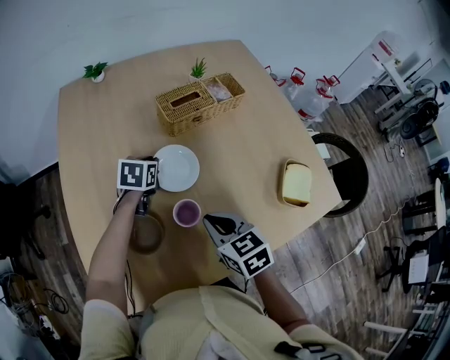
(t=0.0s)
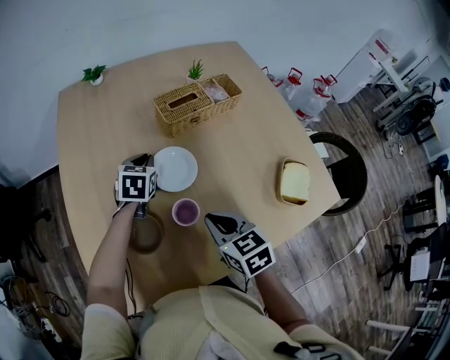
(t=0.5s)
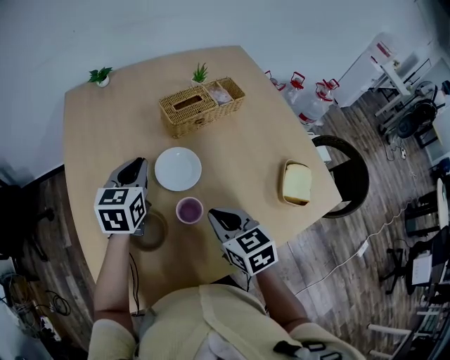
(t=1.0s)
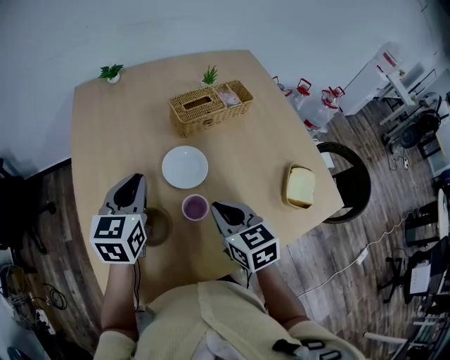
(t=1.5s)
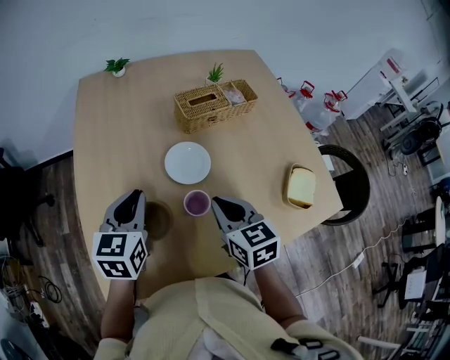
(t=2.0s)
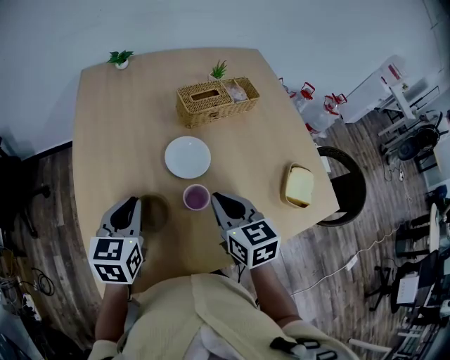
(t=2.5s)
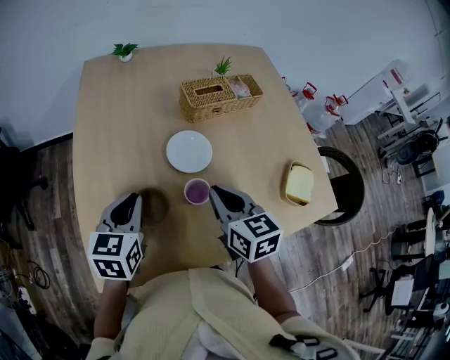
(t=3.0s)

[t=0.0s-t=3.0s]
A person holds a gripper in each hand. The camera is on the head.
t=0.0s to t=1.5s: The left gripper goes about 20 cm upward and backward, and swivels some 30 degrees.
t=1.5s to t=3.0s: The left gripper shifts about 10 cm backward.

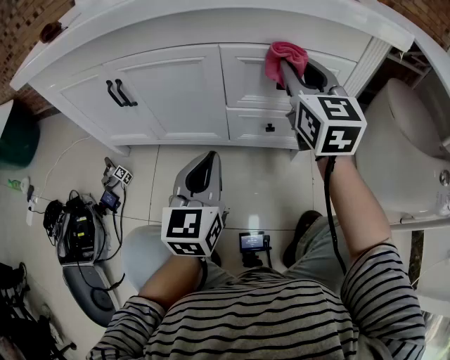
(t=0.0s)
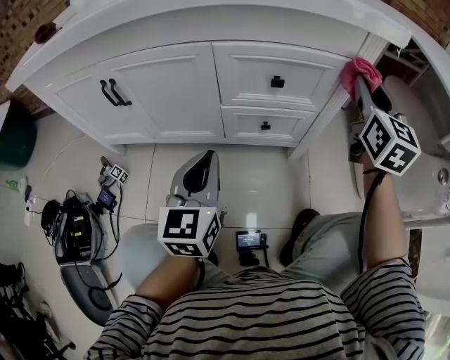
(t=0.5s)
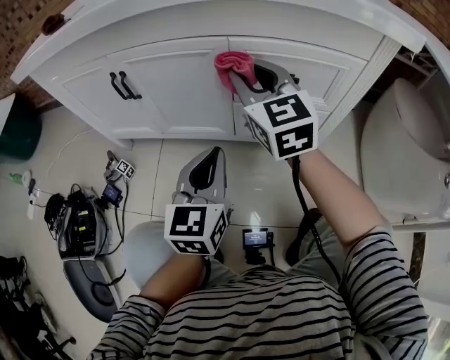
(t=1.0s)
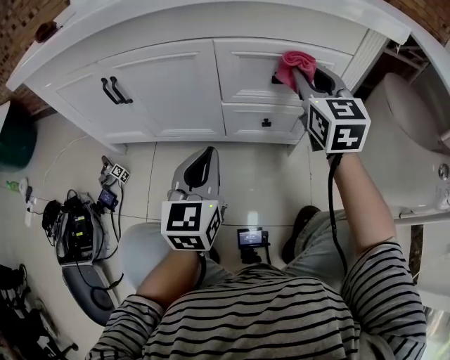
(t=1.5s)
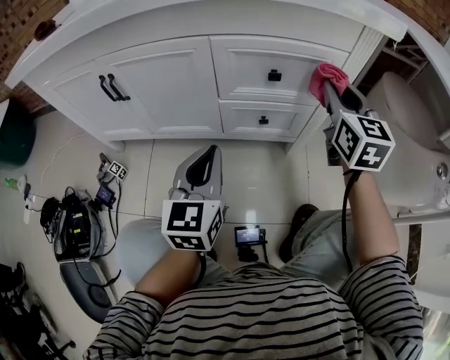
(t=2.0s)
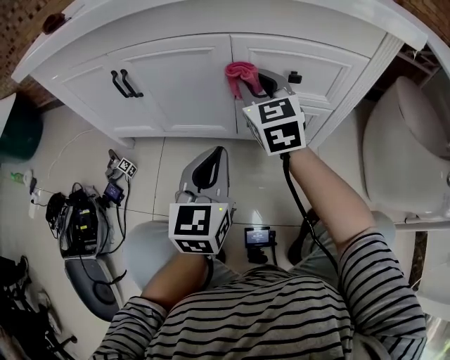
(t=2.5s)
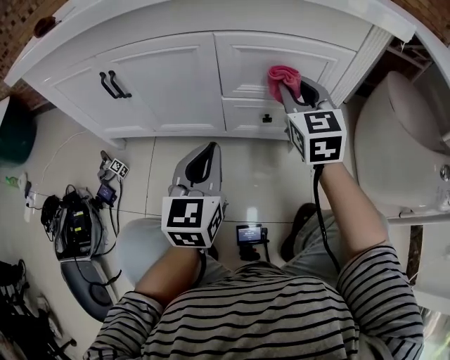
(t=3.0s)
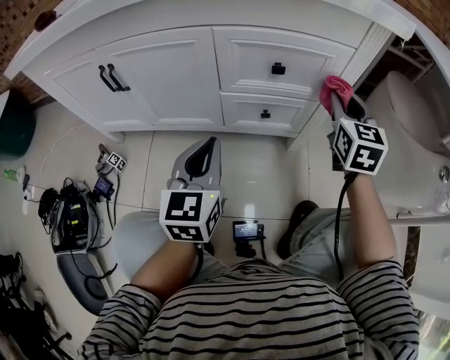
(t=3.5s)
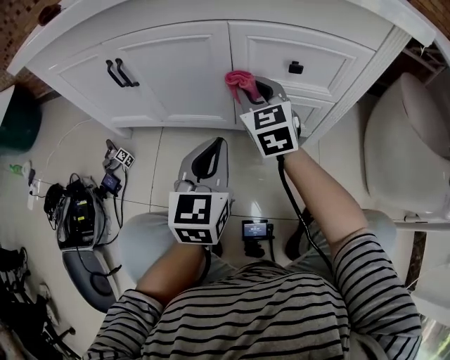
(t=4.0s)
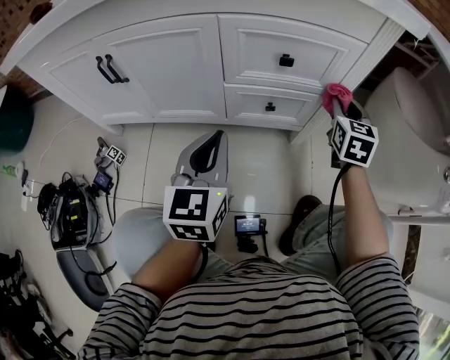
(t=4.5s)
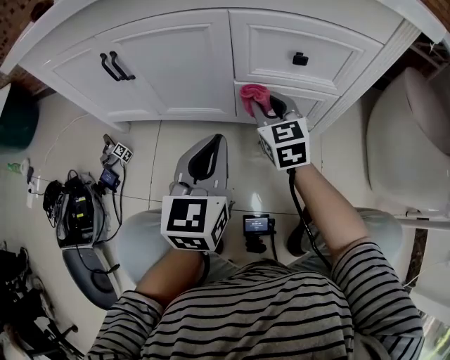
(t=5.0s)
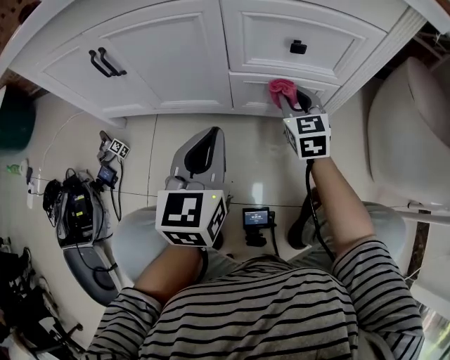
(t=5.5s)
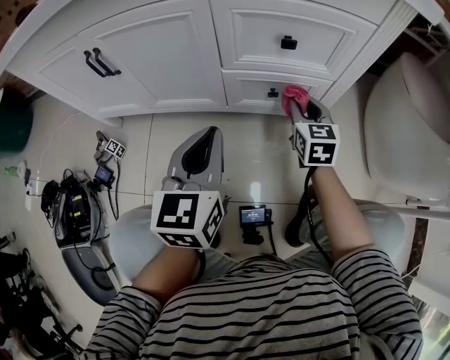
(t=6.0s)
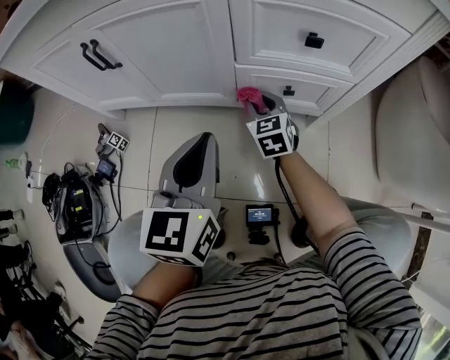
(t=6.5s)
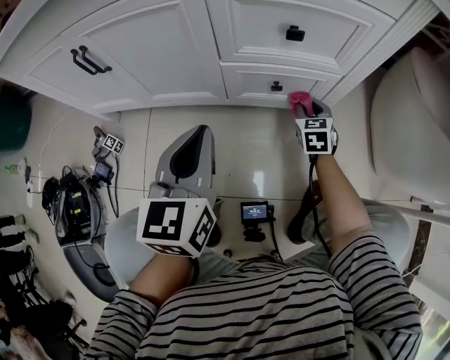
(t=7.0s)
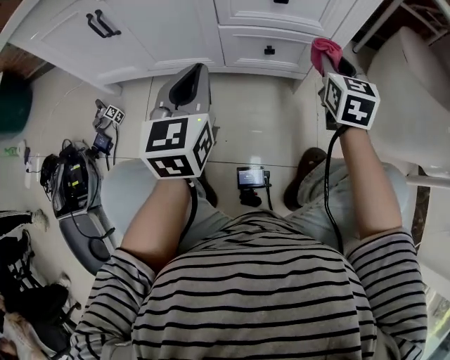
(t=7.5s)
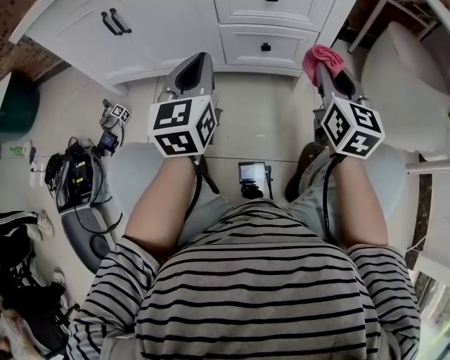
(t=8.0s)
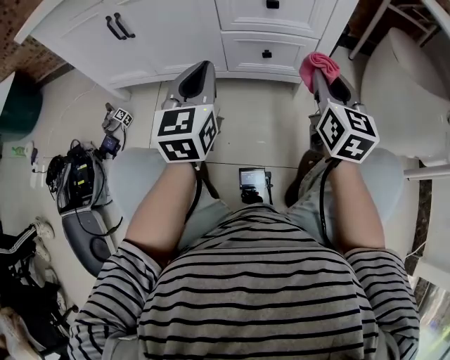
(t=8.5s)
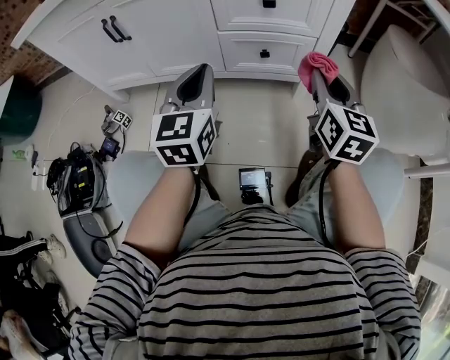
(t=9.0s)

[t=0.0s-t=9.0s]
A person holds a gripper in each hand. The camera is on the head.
t=0.0s to t=2.0s: The right gripper moves left and right over about 30 cm, changing direction 2 times.
t=2.0s to t=4.5s: The right gripper moves left and right over about 25 cm, changing direction 3 times.
t=4.5s to t=7.0s: The right gripper goes left and right, about 25 cm each way, reversing 3 times.
t=7.0s to t=9.0s: The right gripper shifts about 30 cm upward and backward, and rotates about 30 degrees.

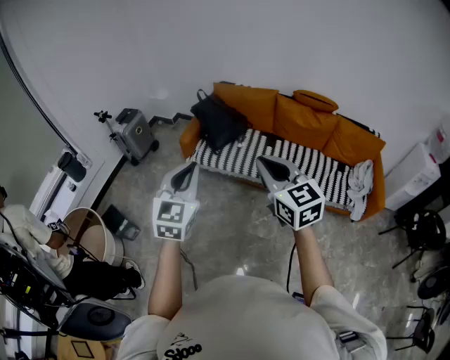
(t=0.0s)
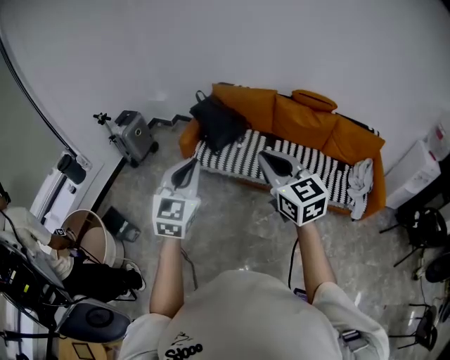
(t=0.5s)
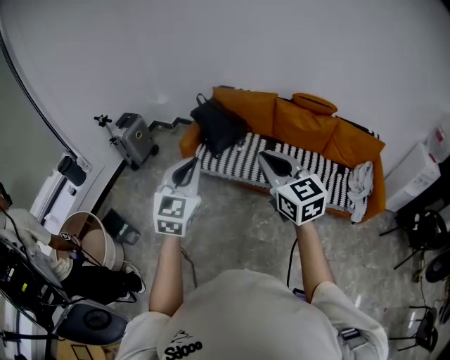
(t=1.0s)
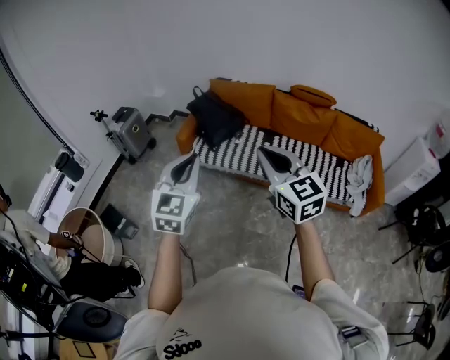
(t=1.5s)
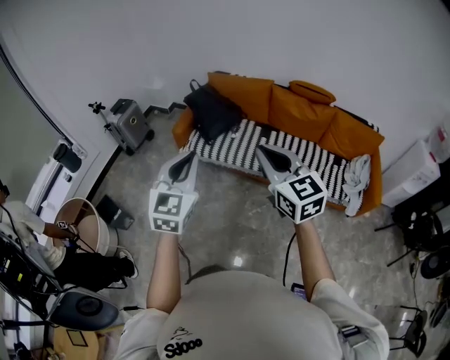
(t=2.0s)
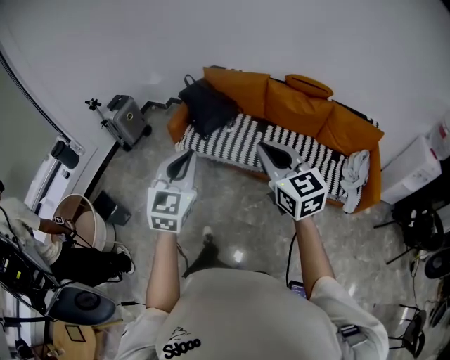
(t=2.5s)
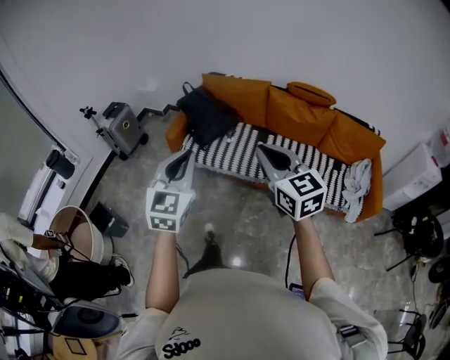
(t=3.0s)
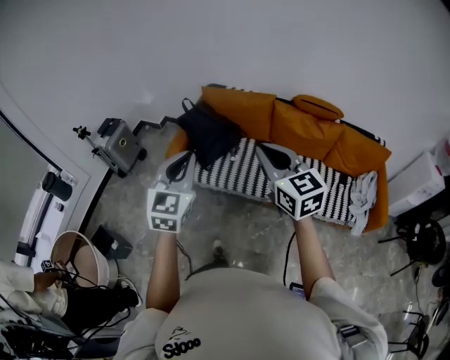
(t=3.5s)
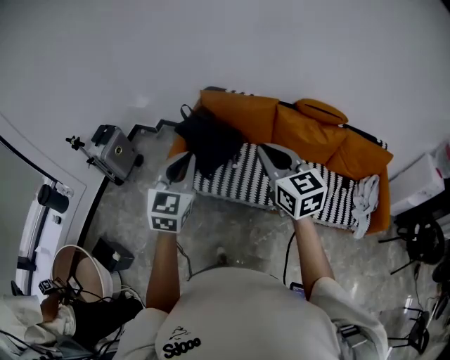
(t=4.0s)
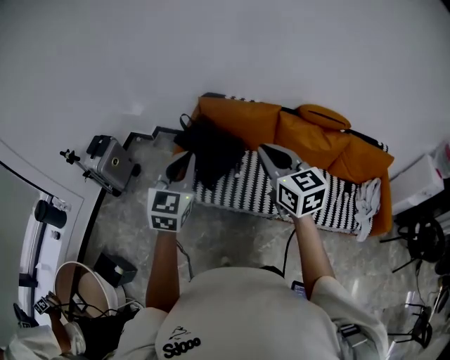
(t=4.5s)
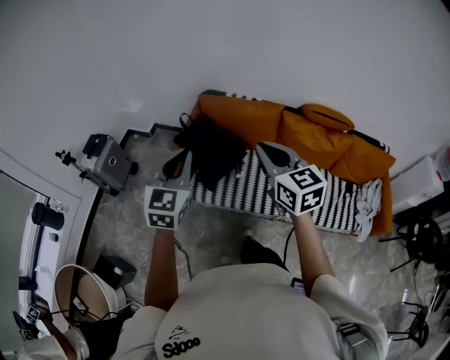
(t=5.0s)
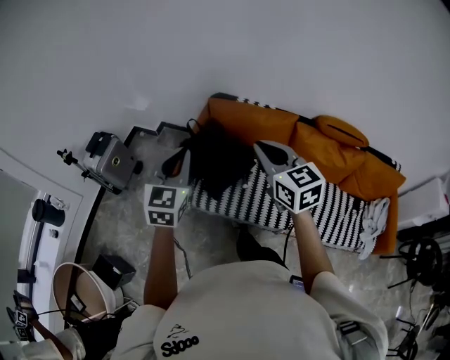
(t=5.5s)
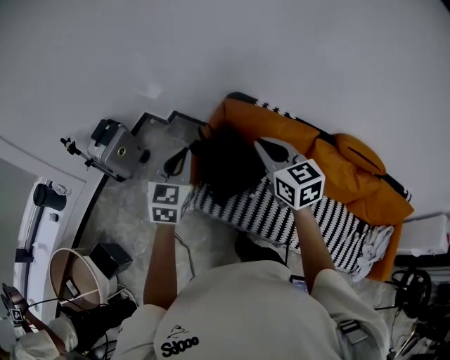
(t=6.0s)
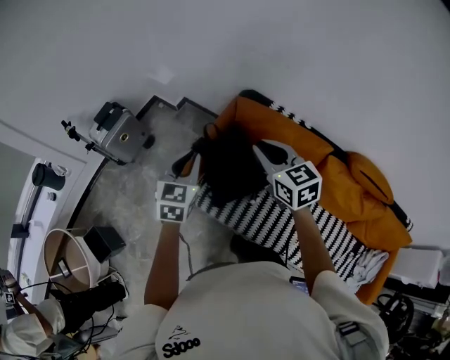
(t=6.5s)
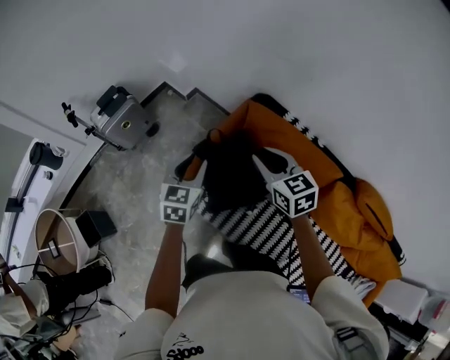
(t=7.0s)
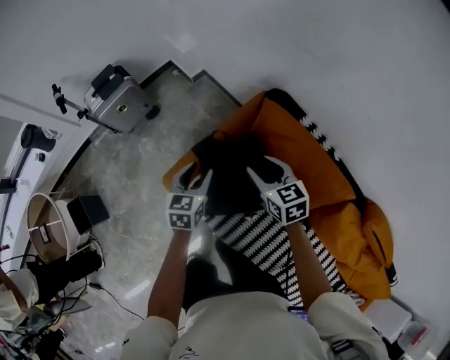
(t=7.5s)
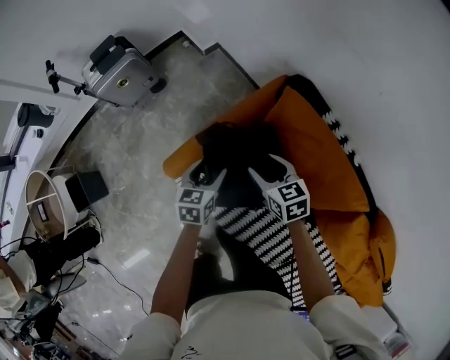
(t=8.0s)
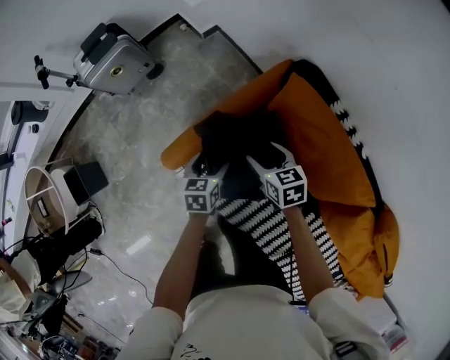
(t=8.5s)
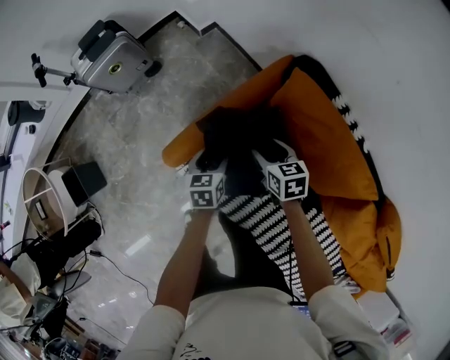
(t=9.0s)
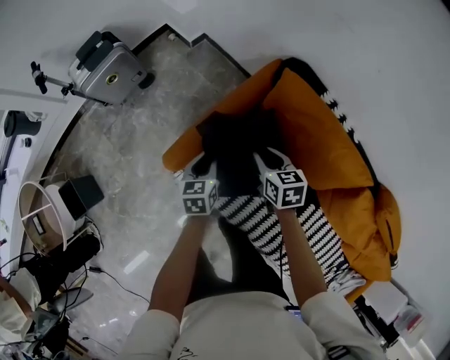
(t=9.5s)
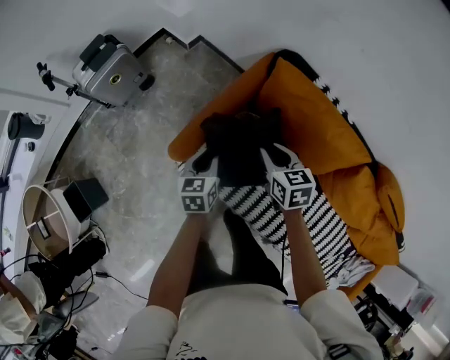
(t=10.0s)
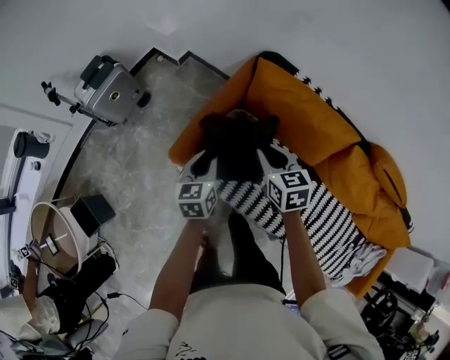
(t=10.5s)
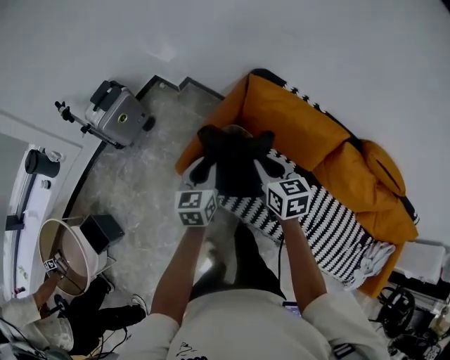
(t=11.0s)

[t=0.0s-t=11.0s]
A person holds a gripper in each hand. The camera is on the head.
t=0.0s to t=2.0s: The two grippers go some 5 cm to the right.
t=2.0s to t=3.5s: The grippers both shift forward by about 25 cm.
t=3.5s to t=5.5s: The grippers both shift forward by about 35 cm.
t=5.5s to t=7.5s: The right gripper changes place by approximately 50 cm, swivels roughly 40 degrees, and opens up. Meanwhile the left gripper heads downward, covering approximately 35 cm, changes its angle by some 40 degrees, and opens its fingers.
t=7.5s to t=9.0s: Both grippers move downward, approximately 20 cm.
t=9.0s to t=11.0s: Both grippers move upward and backward, some 30 cm. The right gripper swivels approximately 30 degrees, and closes up. Meanwhile the left gripper changes its angle by approximately 30 degrees, and closes up.

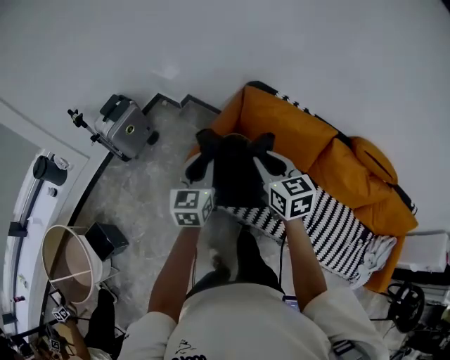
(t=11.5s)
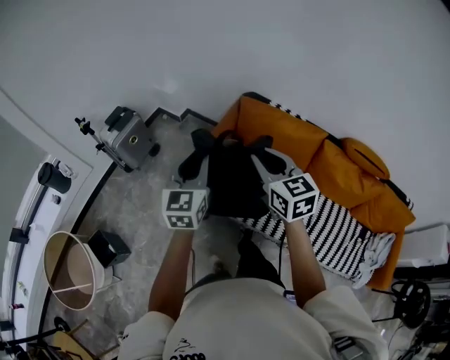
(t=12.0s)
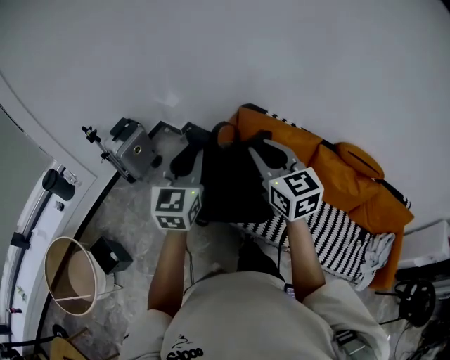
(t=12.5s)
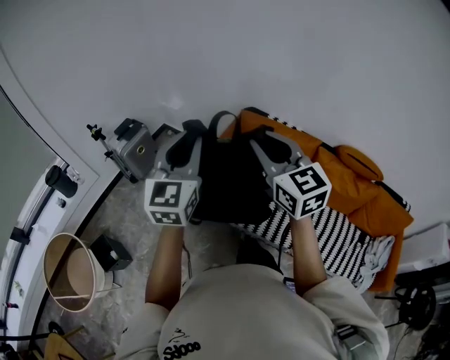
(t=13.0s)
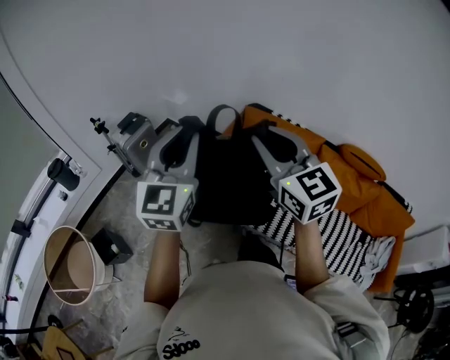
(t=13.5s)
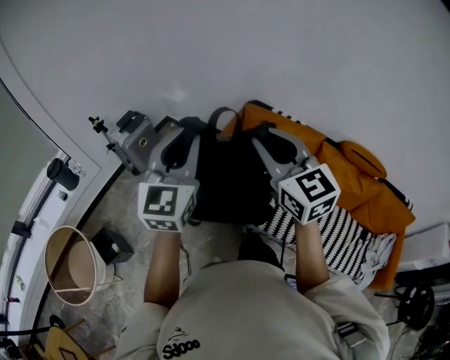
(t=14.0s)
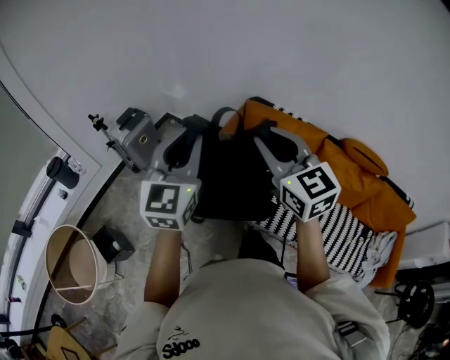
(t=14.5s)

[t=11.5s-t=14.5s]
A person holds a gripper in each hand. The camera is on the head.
t=11.5s to t=13.0s: Both grippers travel together upward and backward, some 25 cm. The right gripper swivels about 20 degrees. The left gripper rotates about 20 degrees.
t=13.0s to t=14.5s: The grippers make only small movements.
